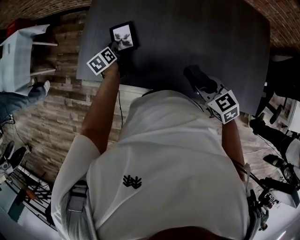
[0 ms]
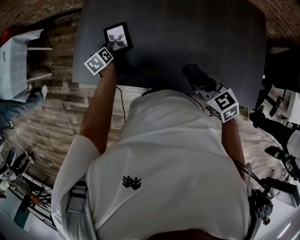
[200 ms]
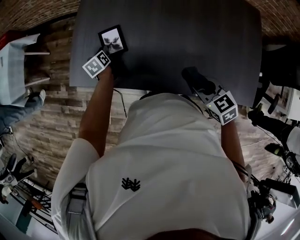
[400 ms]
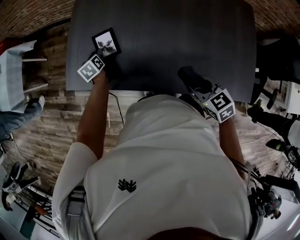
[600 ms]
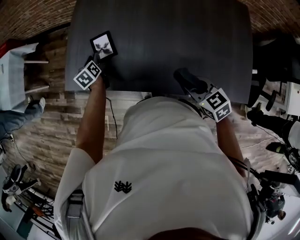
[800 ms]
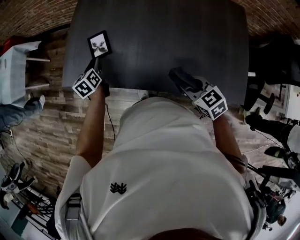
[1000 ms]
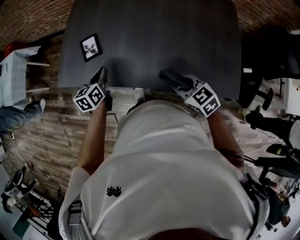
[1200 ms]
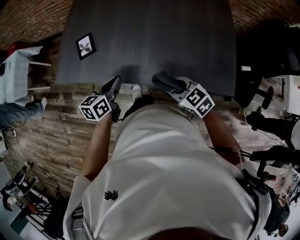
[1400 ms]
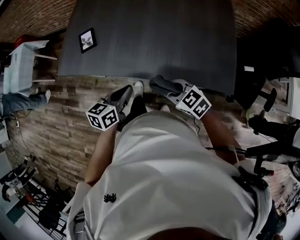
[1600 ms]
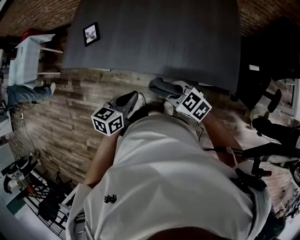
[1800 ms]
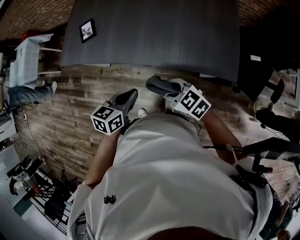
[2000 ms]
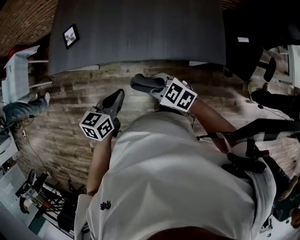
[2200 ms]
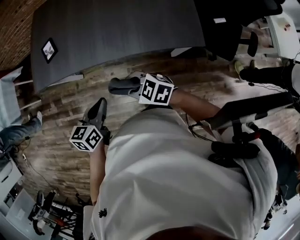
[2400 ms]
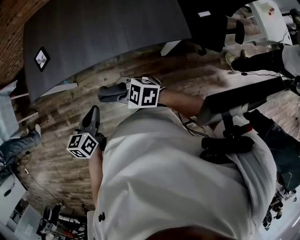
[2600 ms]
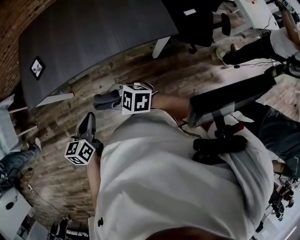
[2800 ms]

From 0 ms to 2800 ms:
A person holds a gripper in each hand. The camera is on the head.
From 0 ms to 1400 ms: The left gripper heads backward, to the right and upward, covering roughly 40 cm, and changes its angle by some 30 degrees. The right gripper is displaced backward and to the right by some 20 cm.
From 1400 ms to 2800 ms: The right gripper heads backward and to the left, covering roughly 25 cm. The left gripper shifts roughly 30 cm backward.

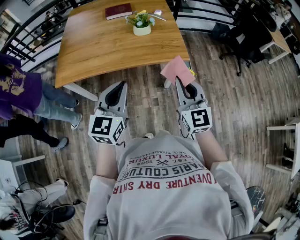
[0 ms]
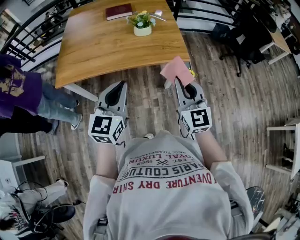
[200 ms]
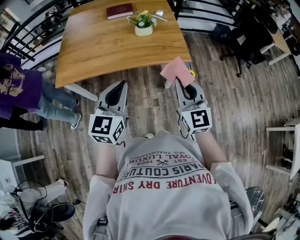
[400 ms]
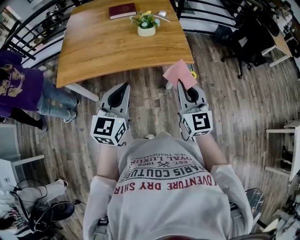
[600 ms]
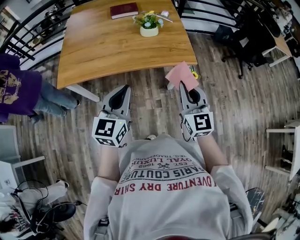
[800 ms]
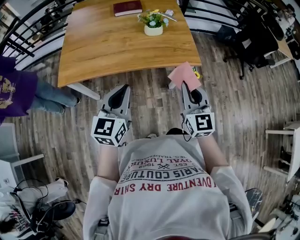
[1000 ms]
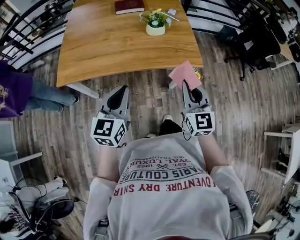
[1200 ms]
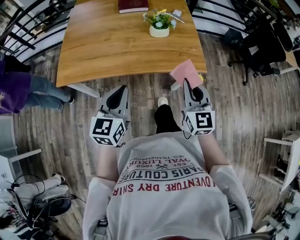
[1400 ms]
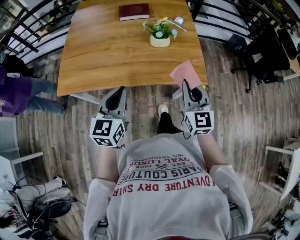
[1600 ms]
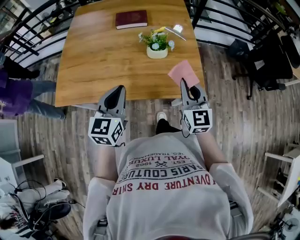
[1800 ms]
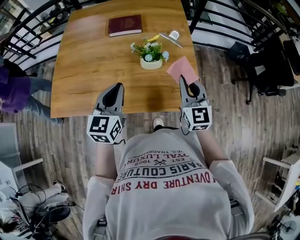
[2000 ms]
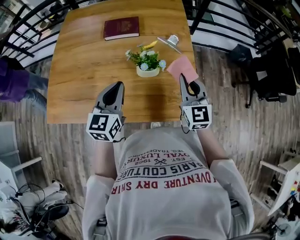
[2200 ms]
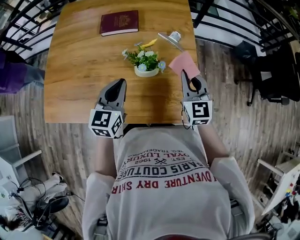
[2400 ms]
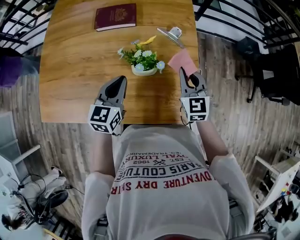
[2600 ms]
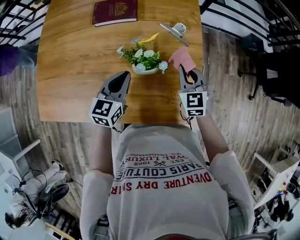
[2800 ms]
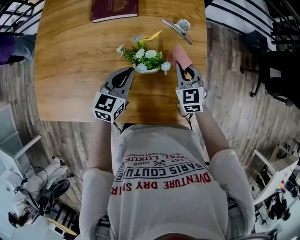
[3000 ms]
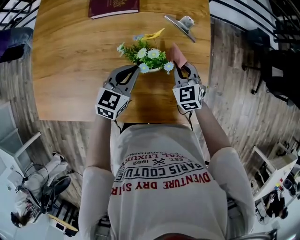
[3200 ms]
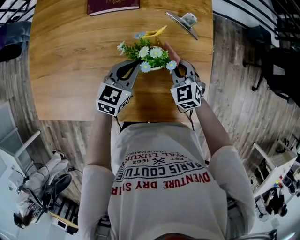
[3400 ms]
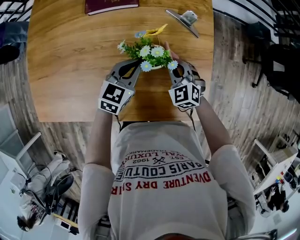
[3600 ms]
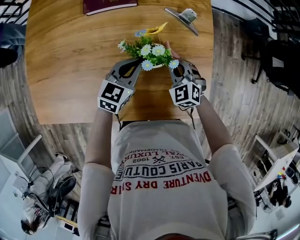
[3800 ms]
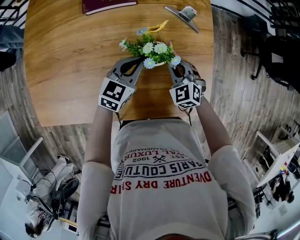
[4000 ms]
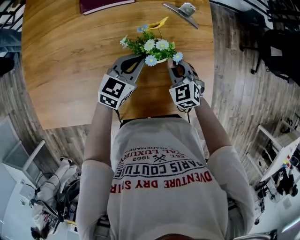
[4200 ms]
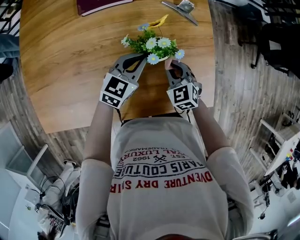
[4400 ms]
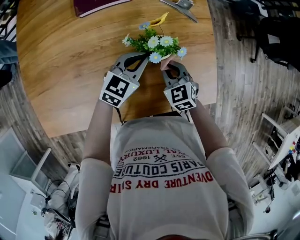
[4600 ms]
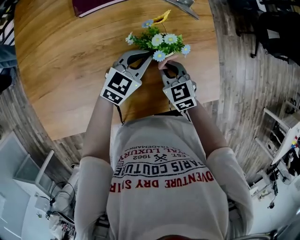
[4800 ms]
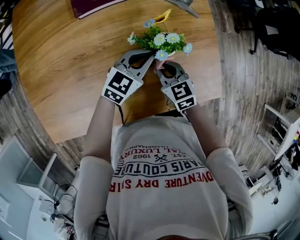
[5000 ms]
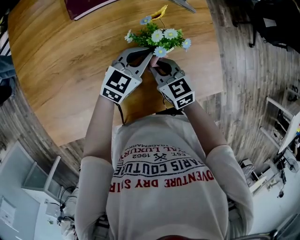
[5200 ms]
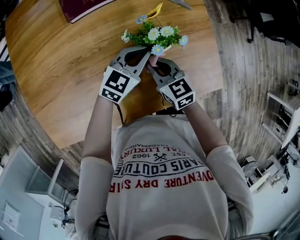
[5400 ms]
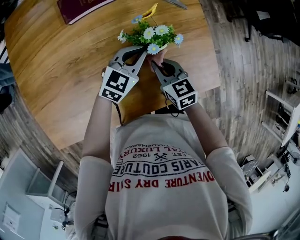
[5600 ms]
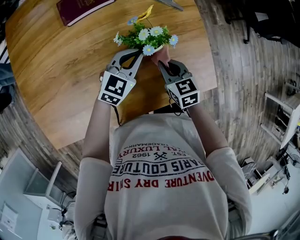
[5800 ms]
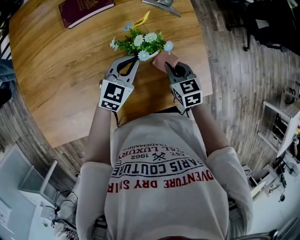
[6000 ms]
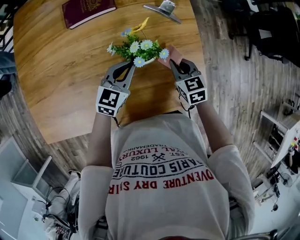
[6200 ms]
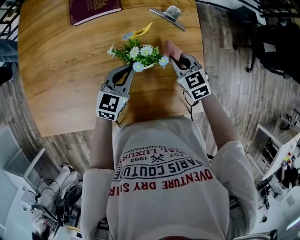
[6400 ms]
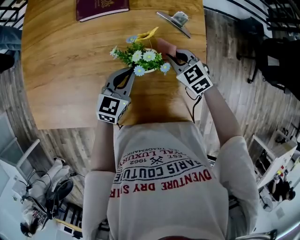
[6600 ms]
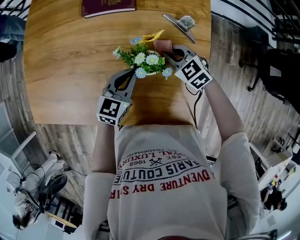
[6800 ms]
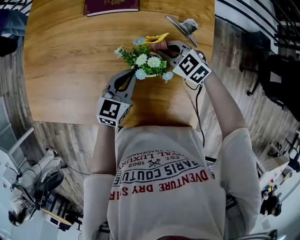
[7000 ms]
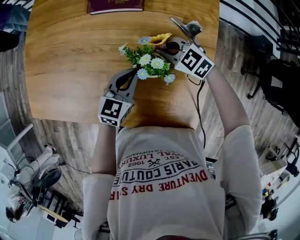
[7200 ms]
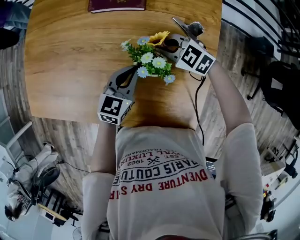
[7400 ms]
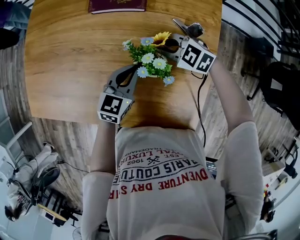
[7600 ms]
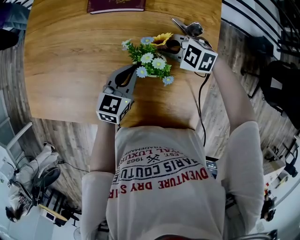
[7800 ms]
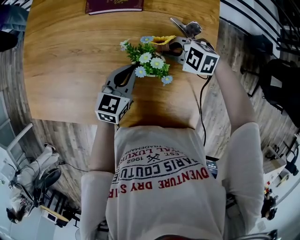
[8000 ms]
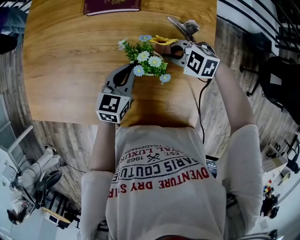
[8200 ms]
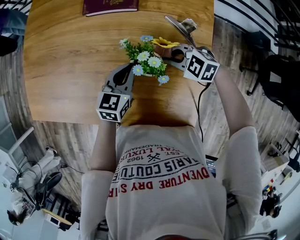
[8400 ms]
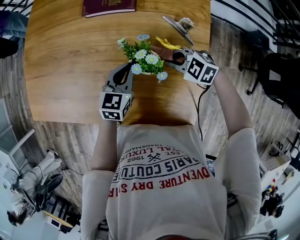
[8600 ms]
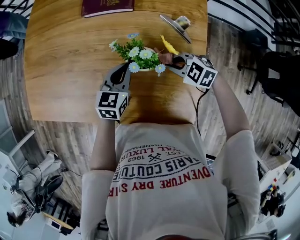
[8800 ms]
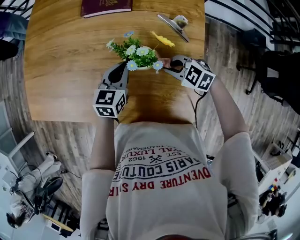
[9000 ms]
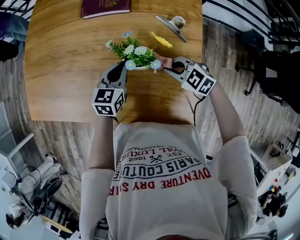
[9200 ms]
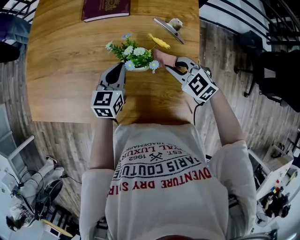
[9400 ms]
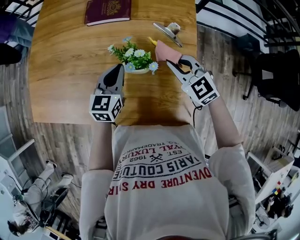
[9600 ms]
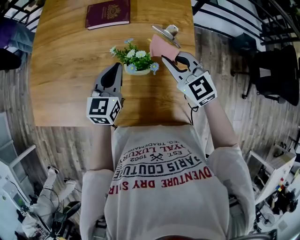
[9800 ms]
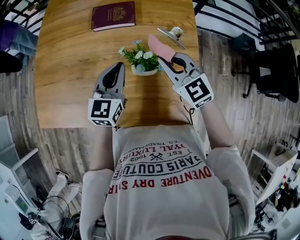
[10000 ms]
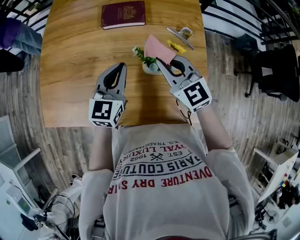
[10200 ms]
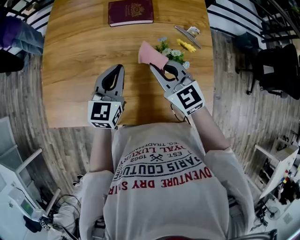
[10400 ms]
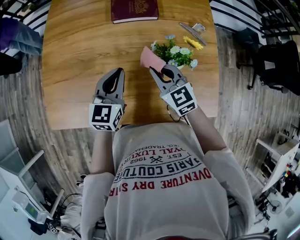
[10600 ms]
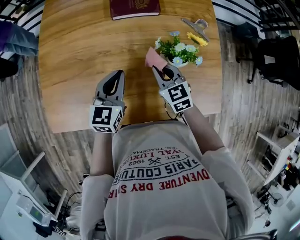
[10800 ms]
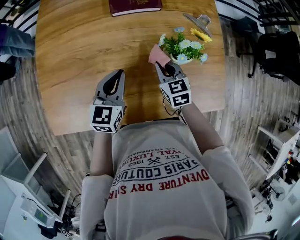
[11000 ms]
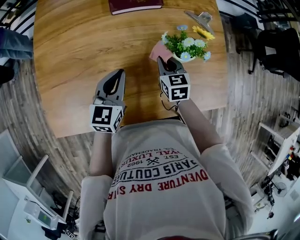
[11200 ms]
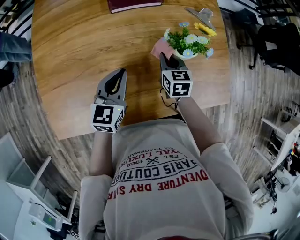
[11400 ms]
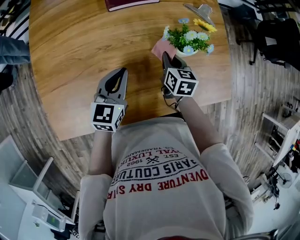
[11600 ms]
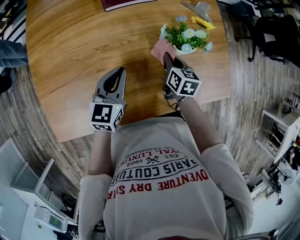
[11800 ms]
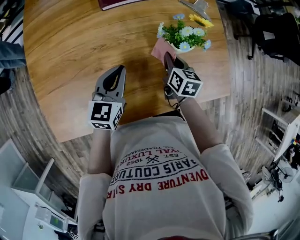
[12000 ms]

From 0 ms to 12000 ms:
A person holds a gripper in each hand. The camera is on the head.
From 0 ms to 1600 ms: The right gripper goes approximately 15 cm forward, while the left gripper is displaced forward, to the left and downward by about 15 cm.
From 1600 ms to 3000 ms: The grippers both shift forward and downward by approximately 35 cm. The right gripper swivels some 30 degrees.
From 3000 ms to 4400 ms: The left gripper changes its angle by approximately 20 degrees, while the right gripper is displaced backward, to the left and downward by about 10 cm.
From 4400 ms to 6000 ms: The right gripper goes to the left and returns, approximately 10 cm each way, and rotates about 30 degrees.
From 6000 ms to 7600 ms: The right gripper shifts by approximately 15 cm, and swivels roughly 80 degrees. Meanwhile the left gripper rotates roughly 30 degrees.
From 7600 ms to 9000 ms: The right gripper is displaced backward by approximately 10 cm.
From 9000 ms to 10400 ms: The two grippers go some 20 cm upward and to the left. The right gripper turns by approximately 50 degrees.
From 10400 ms to 12000 ms: The right gripper goes roughly 20 cm downward, and rotates approximately 60 degrees, while the left gripper moves downward, some 10 cm.

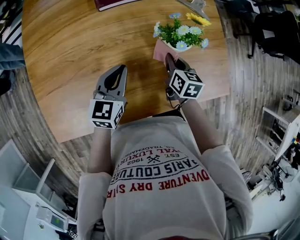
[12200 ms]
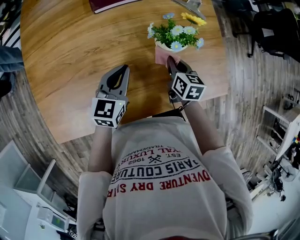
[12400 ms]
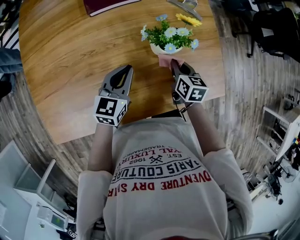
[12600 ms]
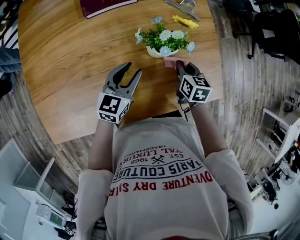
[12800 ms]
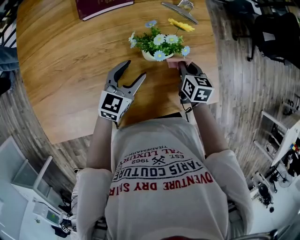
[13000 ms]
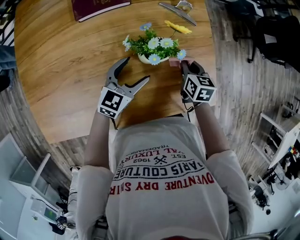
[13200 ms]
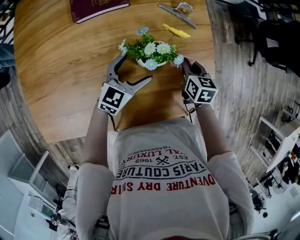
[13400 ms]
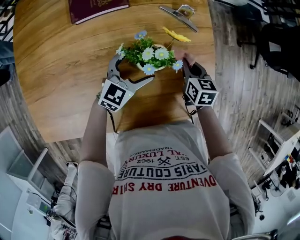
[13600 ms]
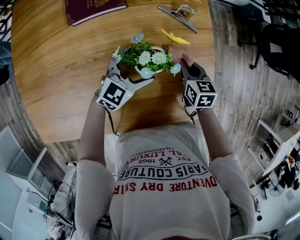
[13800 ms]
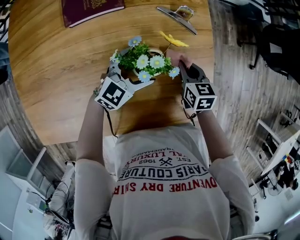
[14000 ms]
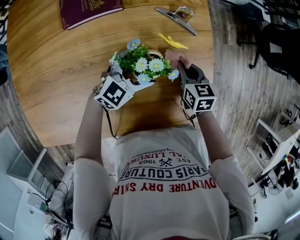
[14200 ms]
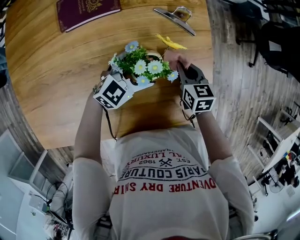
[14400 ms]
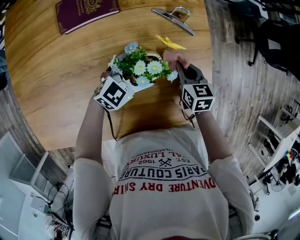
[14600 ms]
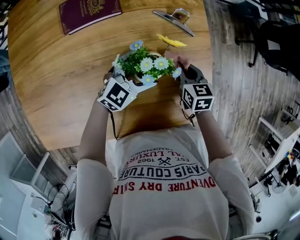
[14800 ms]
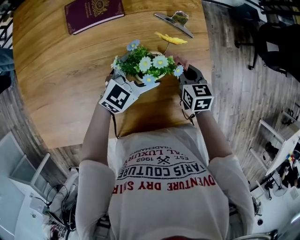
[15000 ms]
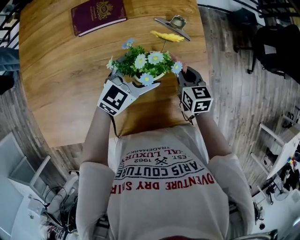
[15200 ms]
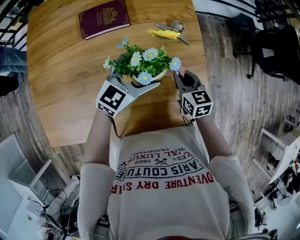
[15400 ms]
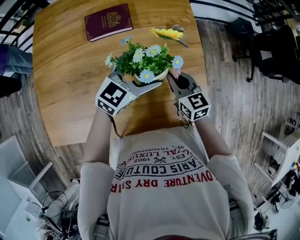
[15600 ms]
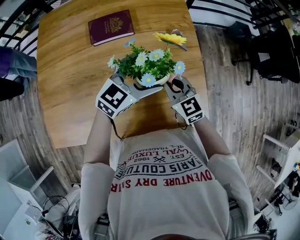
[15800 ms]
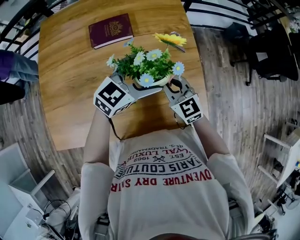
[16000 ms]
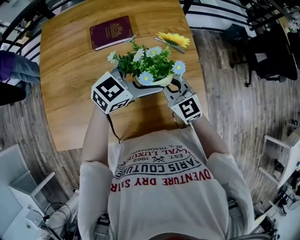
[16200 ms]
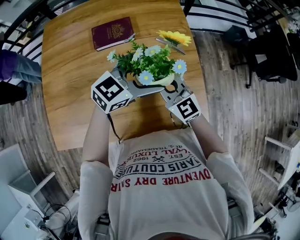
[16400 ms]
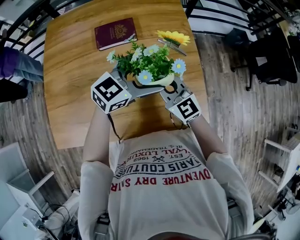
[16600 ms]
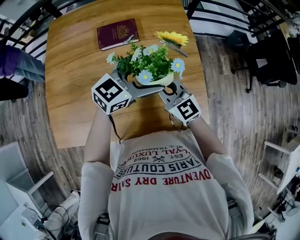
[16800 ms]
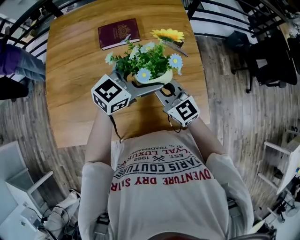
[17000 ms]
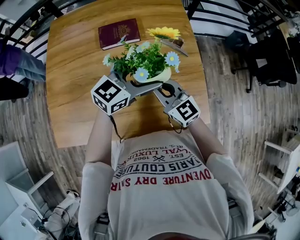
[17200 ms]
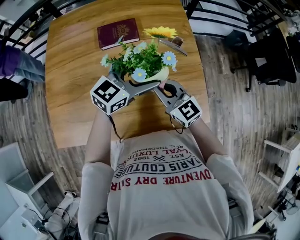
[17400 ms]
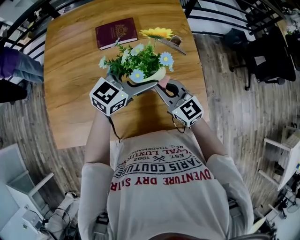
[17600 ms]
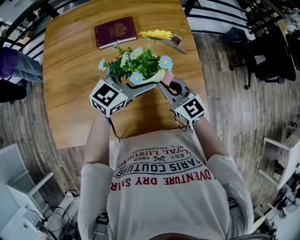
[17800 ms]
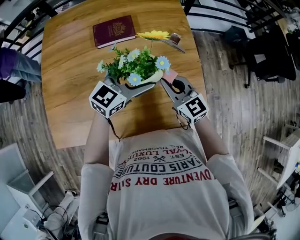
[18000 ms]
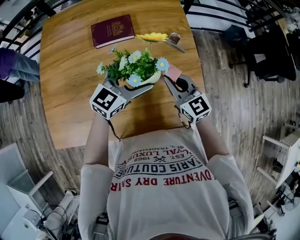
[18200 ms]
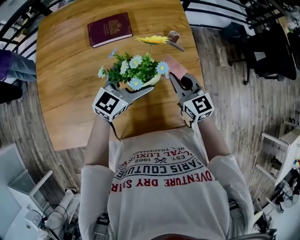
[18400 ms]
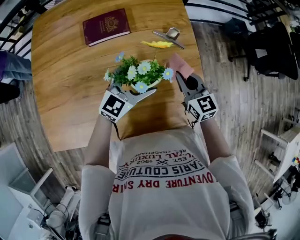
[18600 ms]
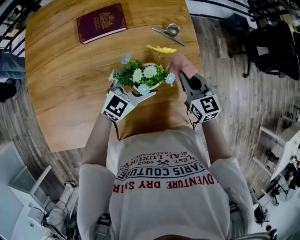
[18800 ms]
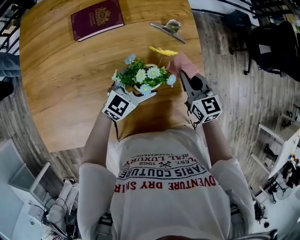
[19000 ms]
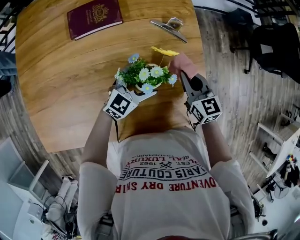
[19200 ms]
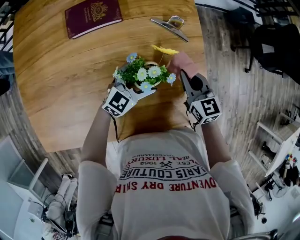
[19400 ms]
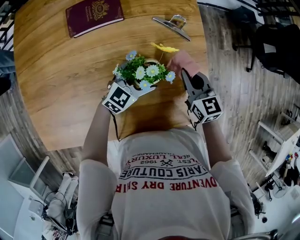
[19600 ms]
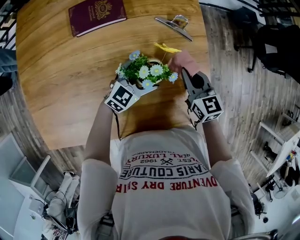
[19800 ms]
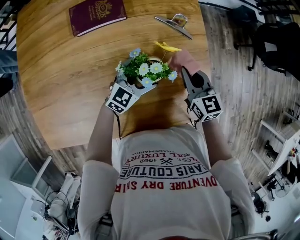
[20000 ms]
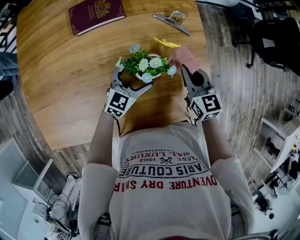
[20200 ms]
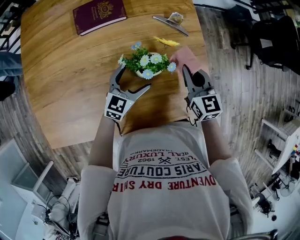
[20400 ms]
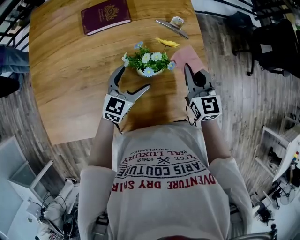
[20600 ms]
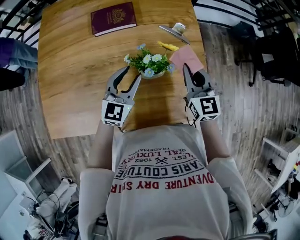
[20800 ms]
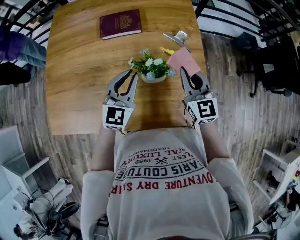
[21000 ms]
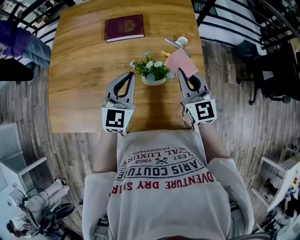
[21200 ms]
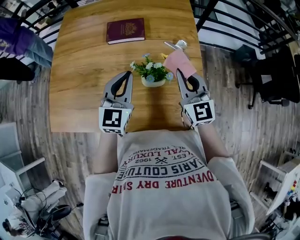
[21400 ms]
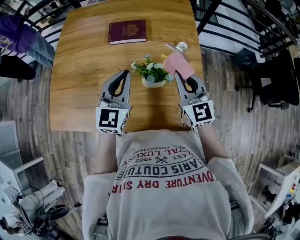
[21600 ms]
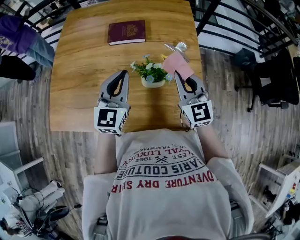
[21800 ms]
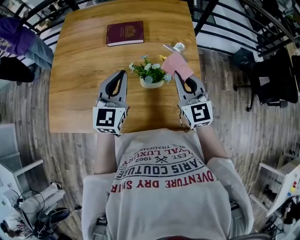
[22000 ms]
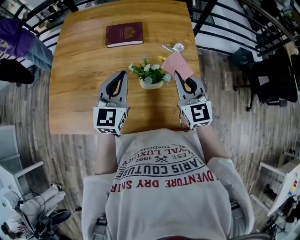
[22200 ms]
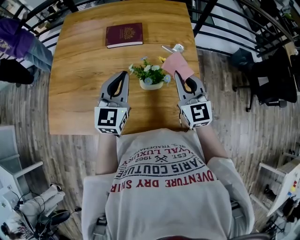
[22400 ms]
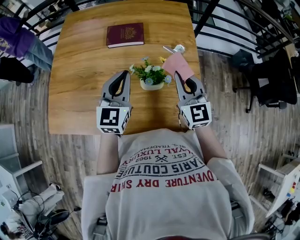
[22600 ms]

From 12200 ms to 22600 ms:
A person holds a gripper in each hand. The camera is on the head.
From 12200 ms to 13600 ms: The two grippers go about 20 cm to the right and forward. The left gripper rotates about 20 degrees, and opens.
From 13600 ms to 15200 ms: The left gripper heads upward, covering some 5 cm.
From 15200 ms to 16600 ms: The right gripper goes about 20 cm upward, to the left and backward, and angles its fingers upward, by roughly 30 degrees; the left gripper heads upward, covering approximately 15 cm.
From 16600 ms to 18200 ms: The right gripper moves to the right, roughly 5 cm. Meanwhile the left gripper moves about 5 cm.
From 18200 ms to 19600 ms: The right gripper shifts about 15 cm downward, to the right and forward, and turns by some 20 degrees, while the left gripper goes some 20 cm downward.
From 19600 ms to 21200 ms: The right gripper travels upward by approximately 15 cm, and rotates approximately 30 degrees. The left gripper heads upward and to the left, covering about 20 cm, swivels some 40 degrees, and closes its fingers.
From 21200 ms to 22600 ms: There are only small adjustments of the grippers.
